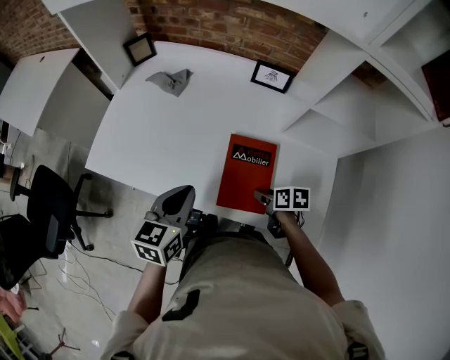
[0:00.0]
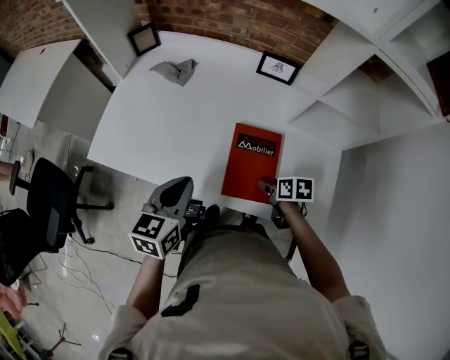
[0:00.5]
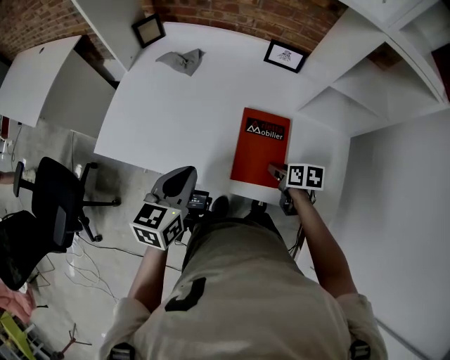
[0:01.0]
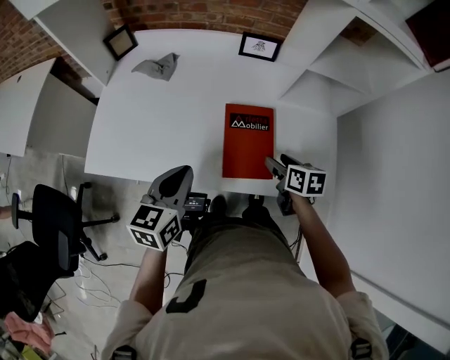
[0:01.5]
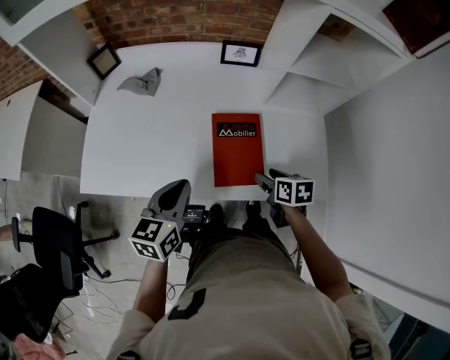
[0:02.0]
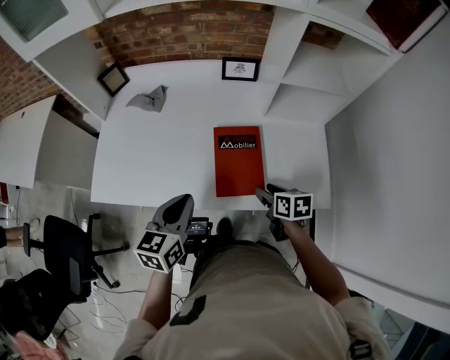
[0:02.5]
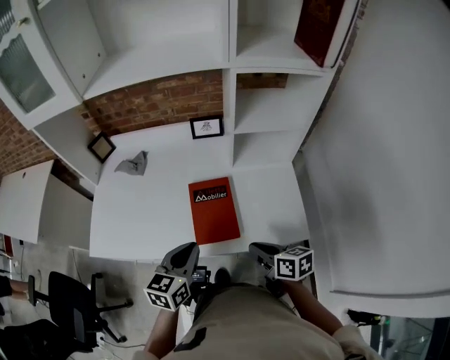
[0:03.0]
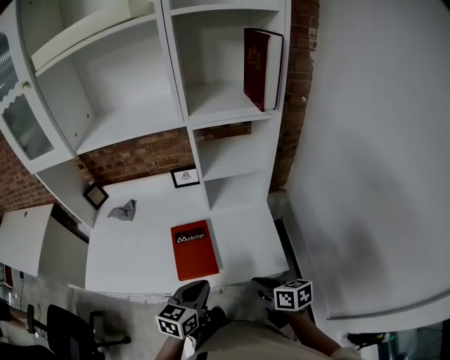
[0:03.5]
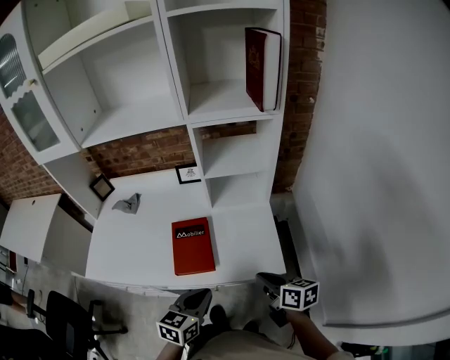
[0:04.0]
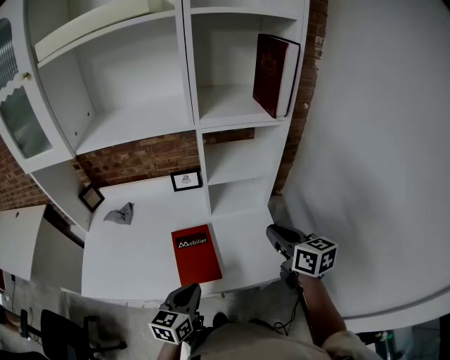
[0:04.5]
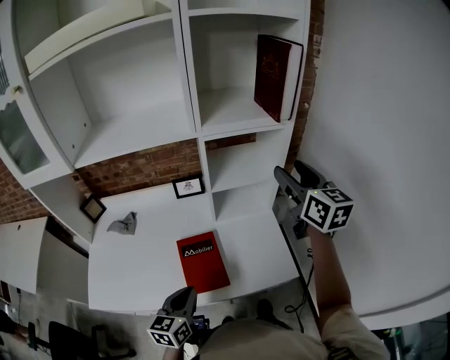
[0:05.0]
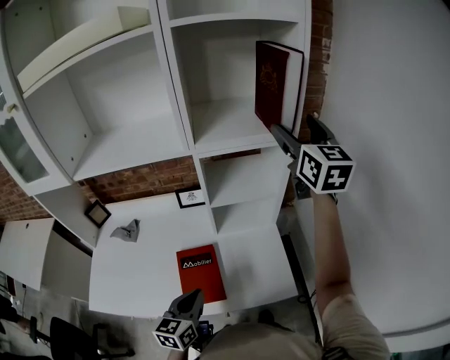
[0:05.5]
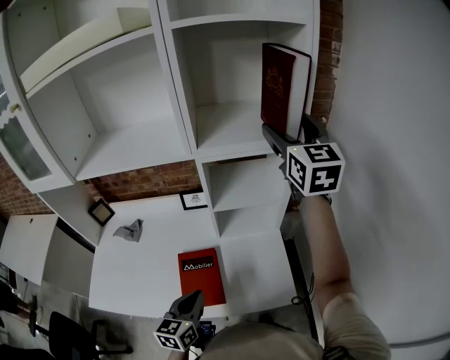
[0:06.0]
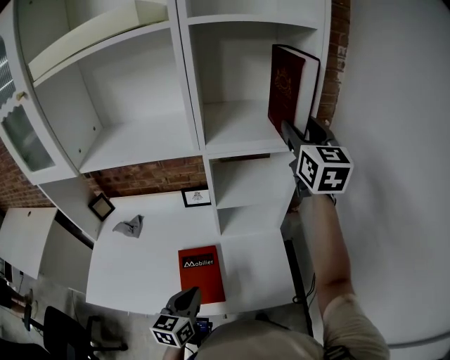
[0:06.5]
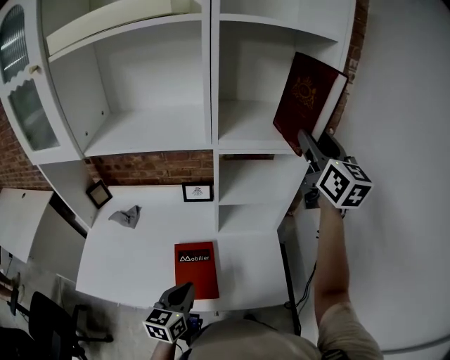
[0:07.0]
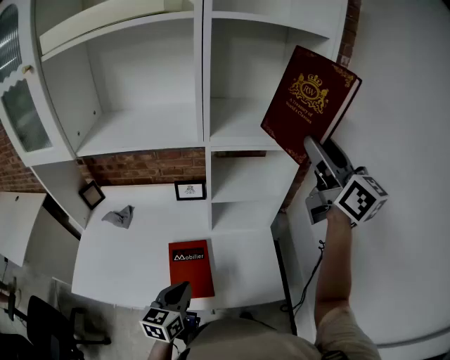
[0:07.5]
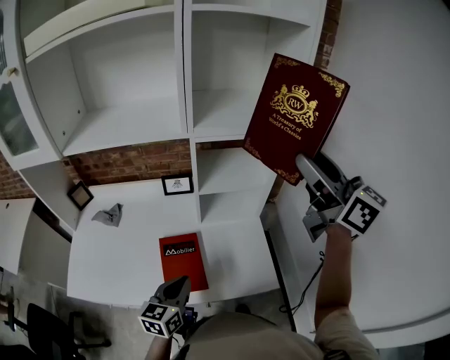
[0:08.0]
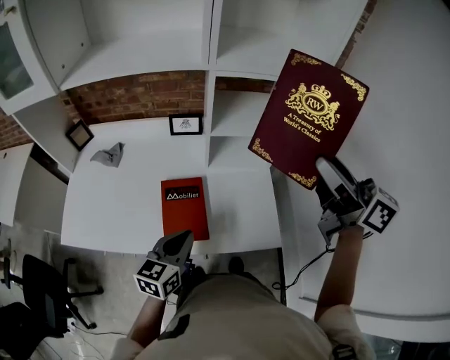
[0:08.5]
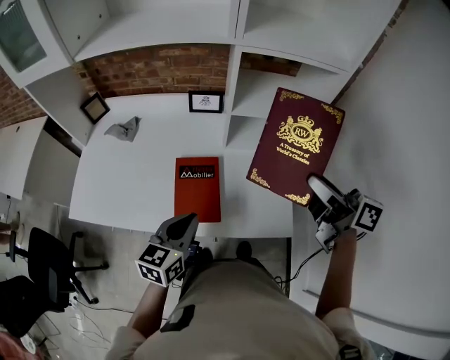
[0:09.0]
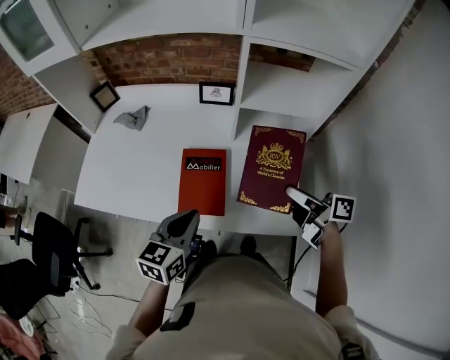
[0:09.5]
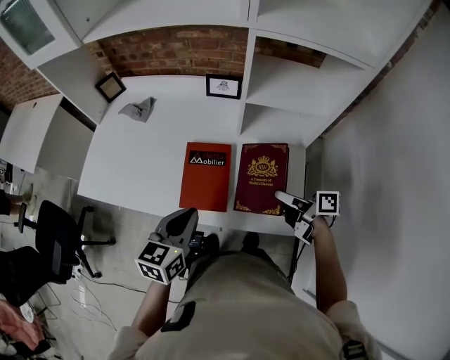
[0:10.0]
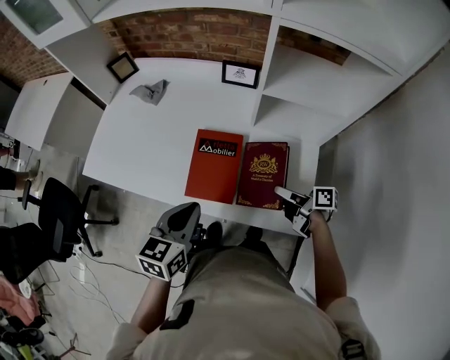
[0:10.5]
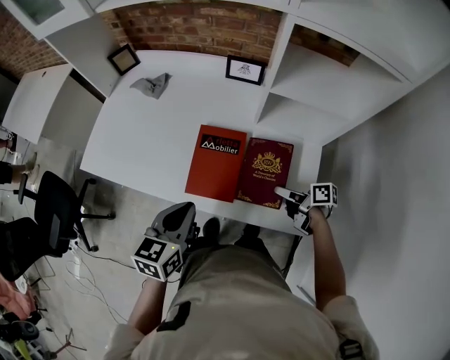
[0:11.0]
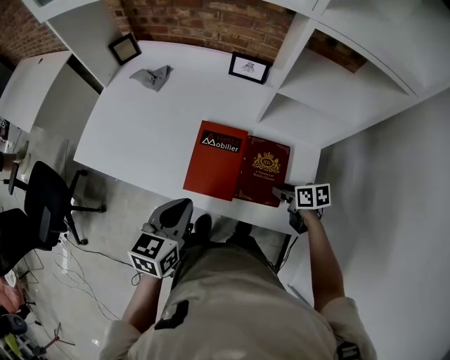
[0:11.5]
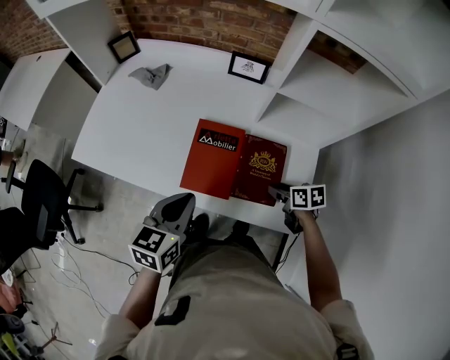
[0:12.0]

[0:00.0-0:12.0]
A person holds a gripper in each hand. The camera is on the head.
0:00.0 to 0:02.0: The right gripper moves approximately 5 cm.
0:02.0 to 0:04.0: The left gripper goes approximately 25 cm to the right and backward, while the right gripper moves to the right, upward and backward, some 25 cm, turns by approximately 30 degrees, and closes its fingers.
0:04.0 to 0:06.0: The left gripper travels forward and to the left by about 15 cm. The right gripper goes approximately 50 cm upward and forward, turns by about 60 degrees, and opens its fingers.
0:06.0 to 0:08.0: The right gripper shifts some 15 cm backward, rotates some 30 degrees, and closes its fingers.
0:08.0 to 0:10.0: The right gripper is displaced downward by roughly 50 cm, and swivels roughly 80 degrees.
0:10.0 to 0:12.0: The right gripper moves downward, approximately 10 cm, and points its fingers approximately 40 degrees further downward.

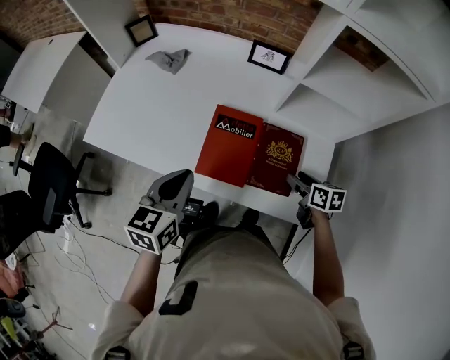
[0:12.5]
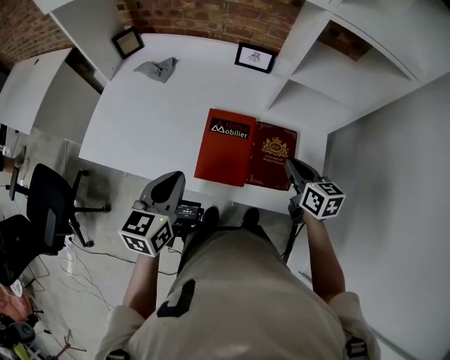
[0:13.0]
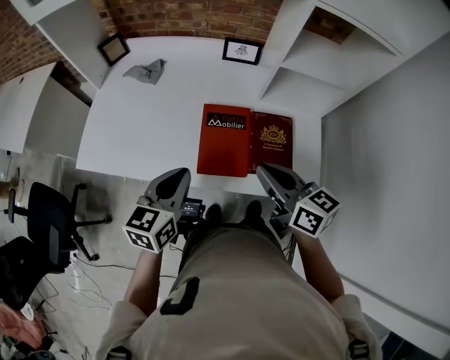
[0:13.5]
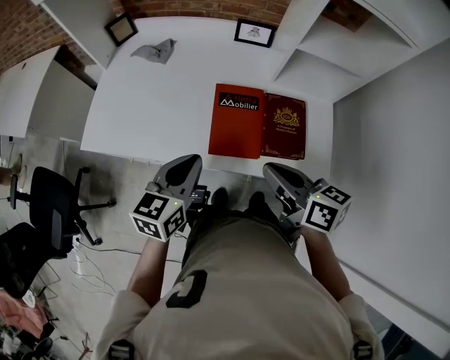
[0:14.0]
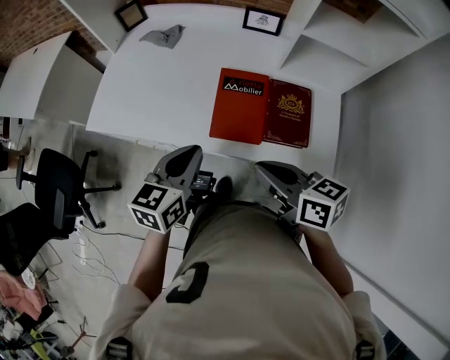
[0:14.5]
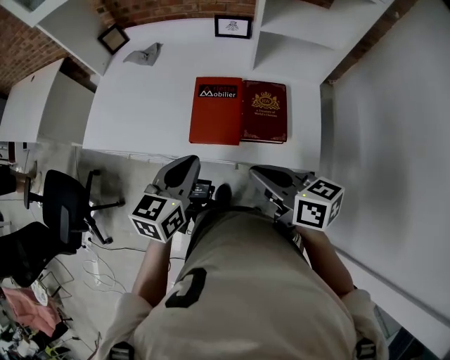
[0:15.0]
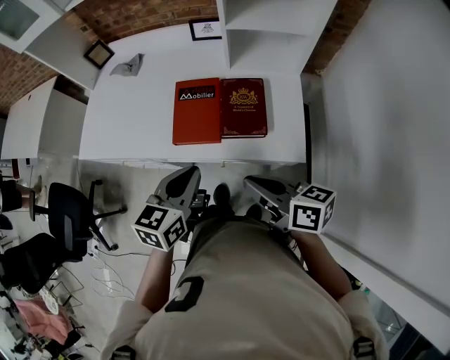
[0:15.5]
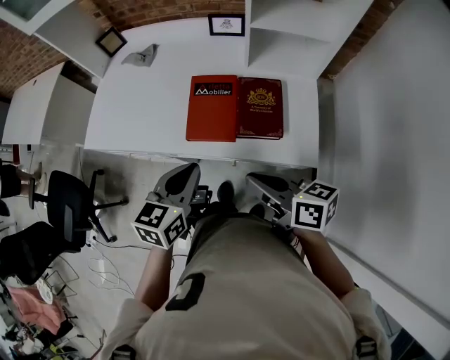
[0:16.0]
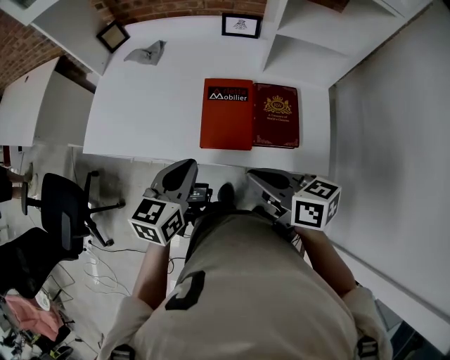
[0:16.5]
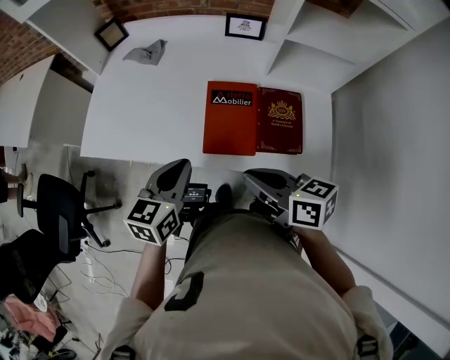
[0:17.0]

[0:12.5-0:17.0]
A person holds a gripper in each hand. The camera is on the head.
0:12.5 to 0:14.5: The right gripper goes approximately 30 cm to the left, upward and backward, swivels roughly 20 degrees, and closes up. The left gripper is displaced backward by about 5 cm.
0:14.5 to 0:17.0: The right gripper reaches roughly 10 cm backward, then returns; the left gripper reaches about 10 cm to the right, then returns.

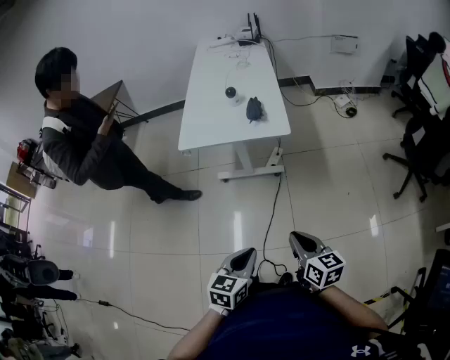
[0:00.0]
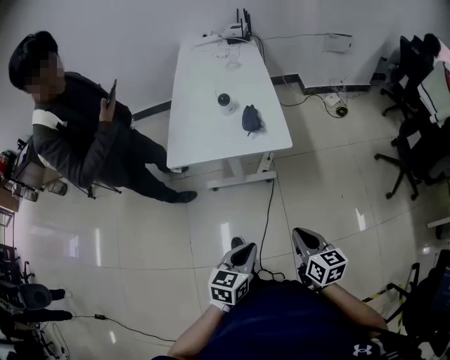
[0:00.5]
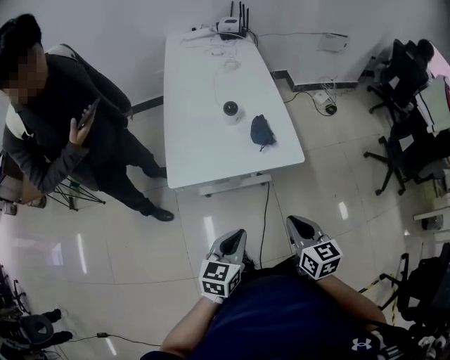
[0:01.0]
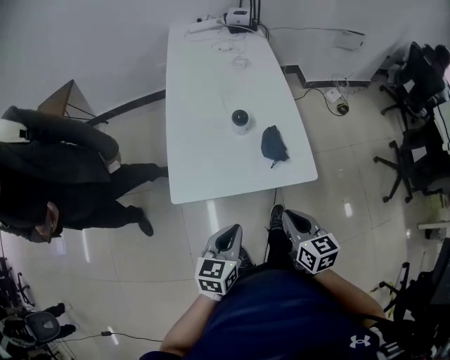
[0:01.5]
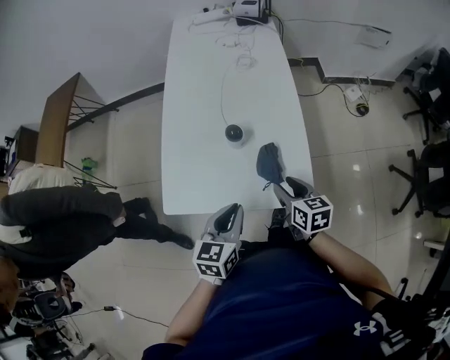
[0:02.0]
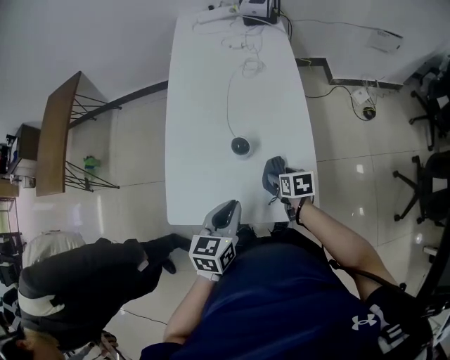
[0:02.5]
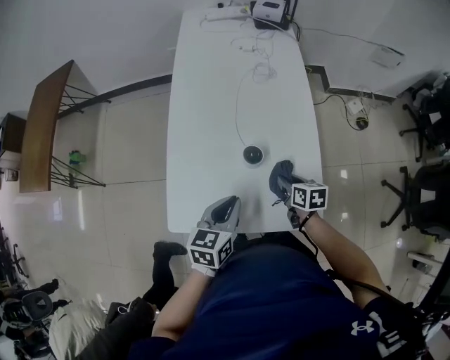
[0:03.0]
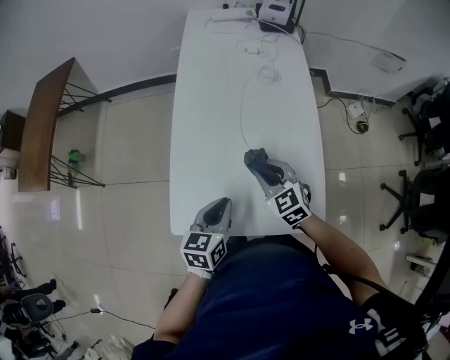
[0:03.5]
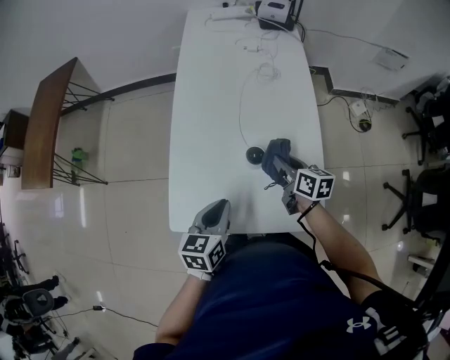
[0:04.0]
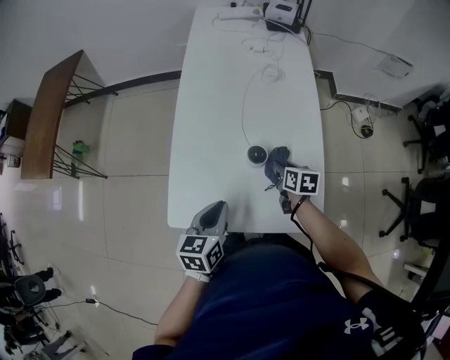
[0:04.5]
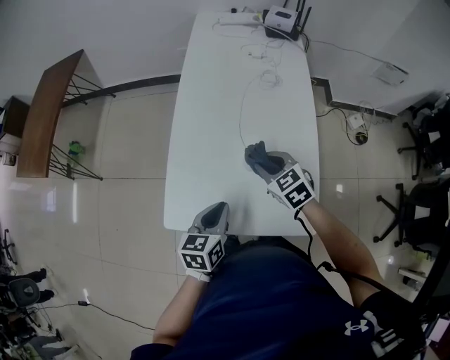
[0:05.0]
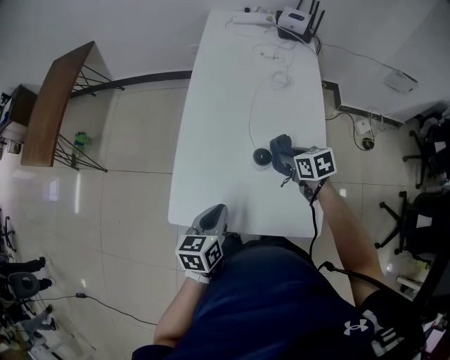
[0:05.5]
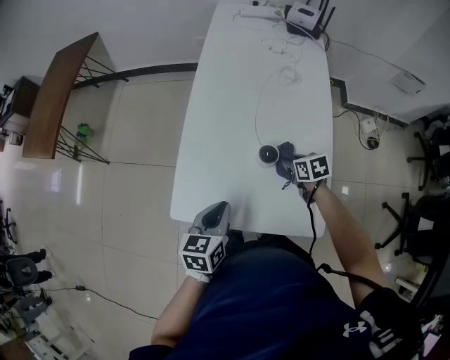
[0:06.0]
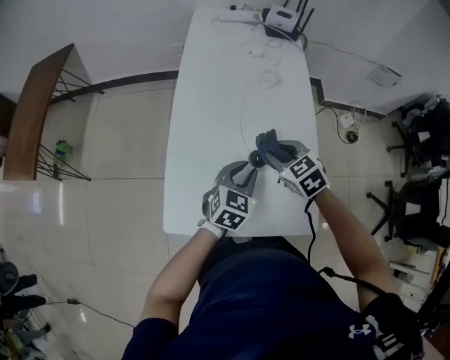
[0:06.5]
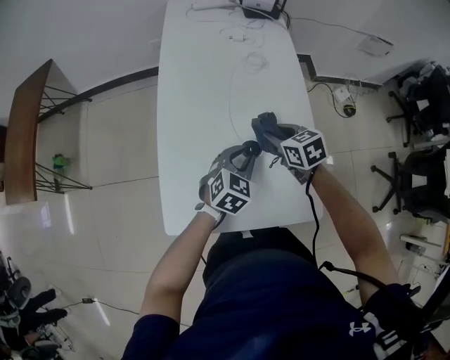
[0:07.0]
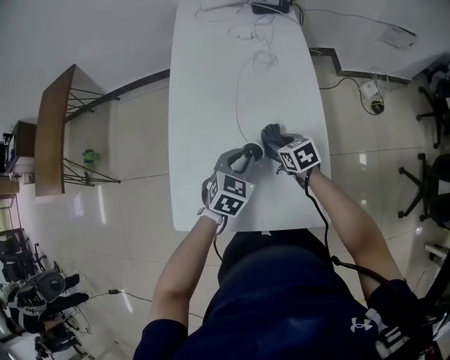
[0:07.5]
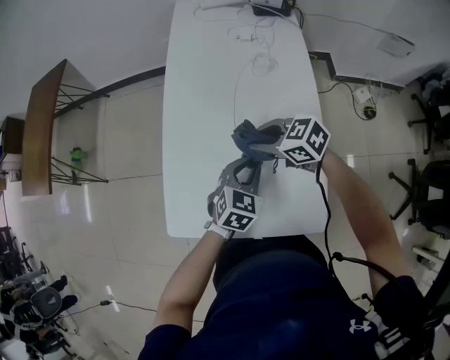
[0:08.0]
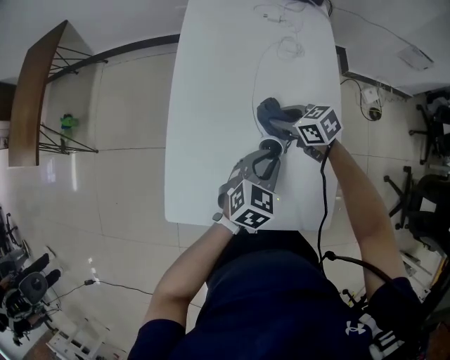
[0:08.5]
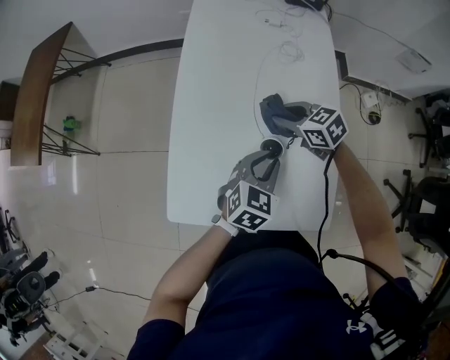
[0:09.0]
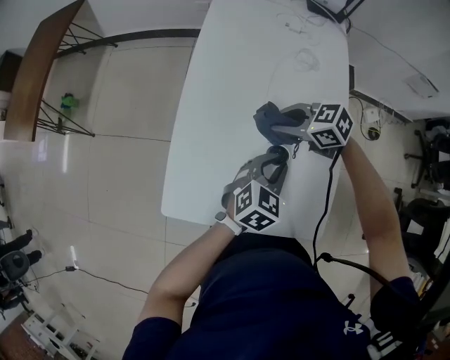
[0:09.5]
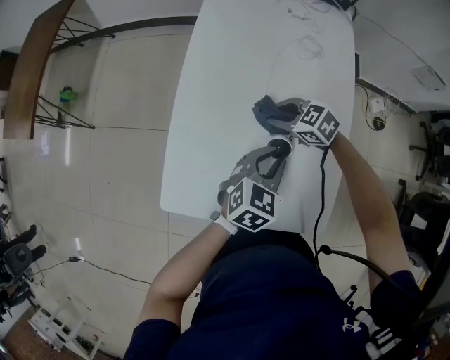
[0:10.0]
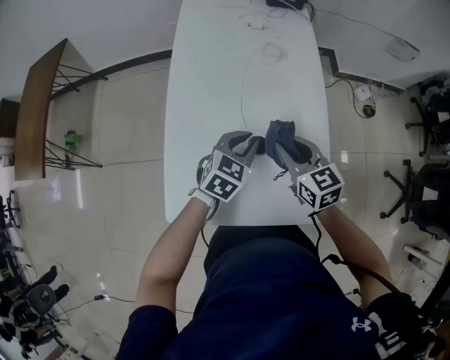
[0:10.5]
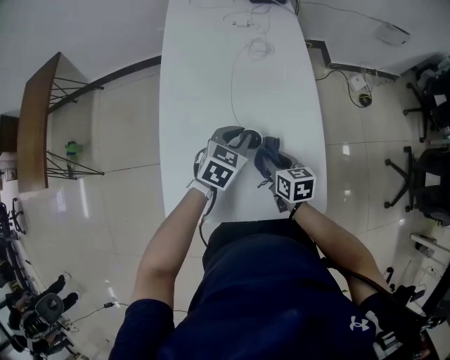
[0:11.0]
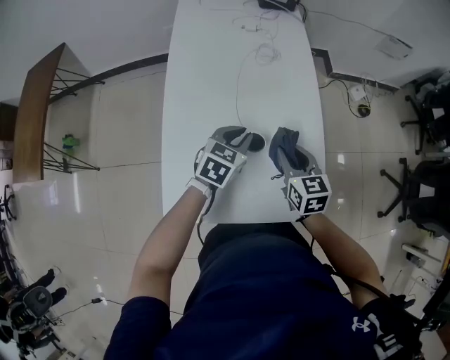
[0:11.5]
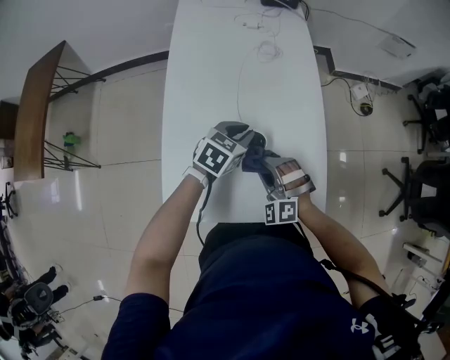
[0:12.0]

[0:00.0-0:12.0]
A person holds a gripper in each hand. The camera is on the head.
0:00.0 to 0:02.0: Both grippers are carried forward, approximately 50 cm. The right gripper opens.
0:02.0 to 0:04.0: The left gripper shifts roughly 15 cm forward and to the left. Meanwhile the right gripper travels forward by about 15 cm, and closes.
0:04.0 to 0:06.0: The right gripper goes up and down, approximately 15 cm each way, reversing 2 times, and rotates some 40 degrees.
0:06.0 to 0:08.0: The left gripper travels to the right and forward by approximately 20 cm, and turns by some 40 degrees, while the right gripper goes up and down, some 15 cm each way, reversing 2 times, and turns by some 40 degrees.
0:08.0 to 0:10.0: The right gripper moves up and down over roughly 10 cm, changing direction 2 times.
0:10.0 to 0:12.0: The right gripper moves up and down over roughly 10 cm, changing direction 3 times, and rotates about 60 degrees.
